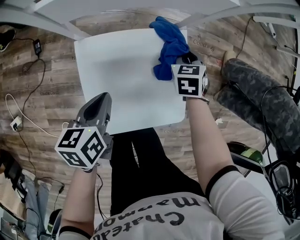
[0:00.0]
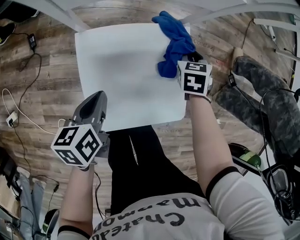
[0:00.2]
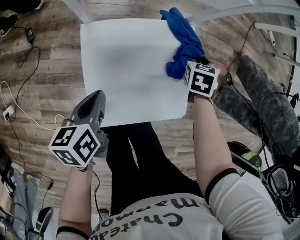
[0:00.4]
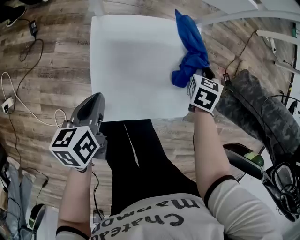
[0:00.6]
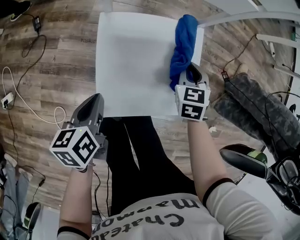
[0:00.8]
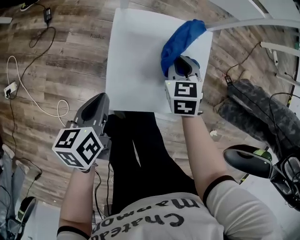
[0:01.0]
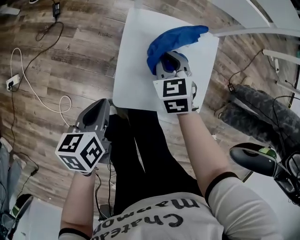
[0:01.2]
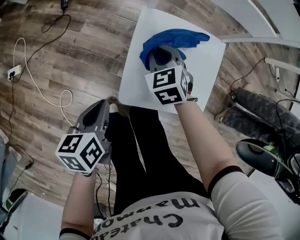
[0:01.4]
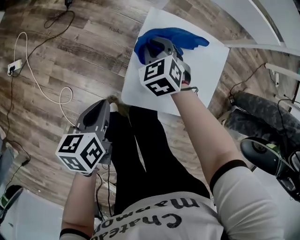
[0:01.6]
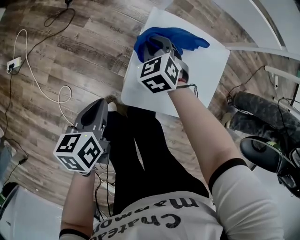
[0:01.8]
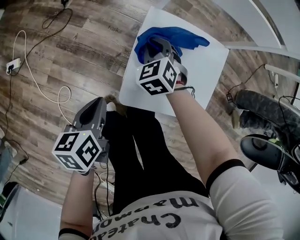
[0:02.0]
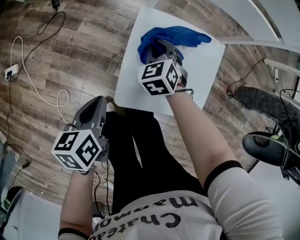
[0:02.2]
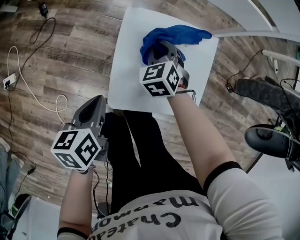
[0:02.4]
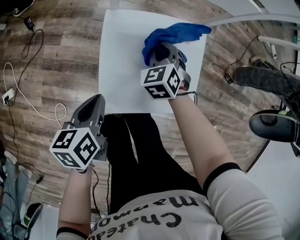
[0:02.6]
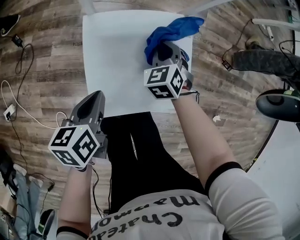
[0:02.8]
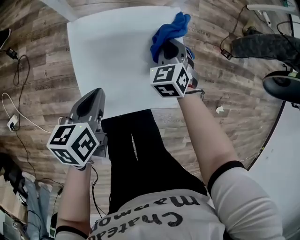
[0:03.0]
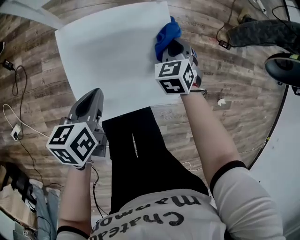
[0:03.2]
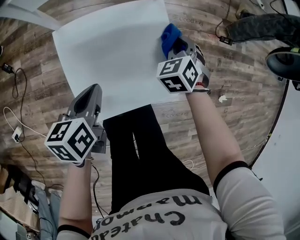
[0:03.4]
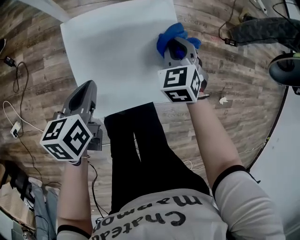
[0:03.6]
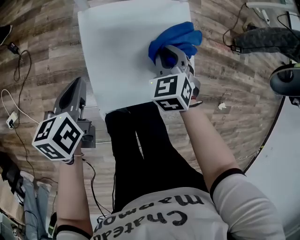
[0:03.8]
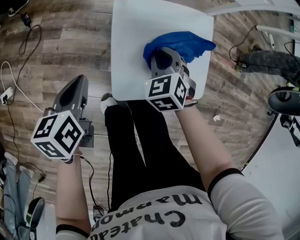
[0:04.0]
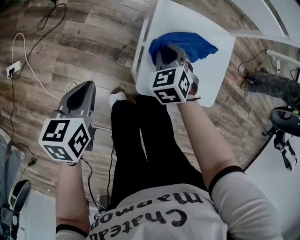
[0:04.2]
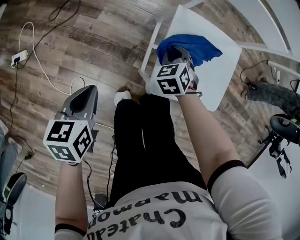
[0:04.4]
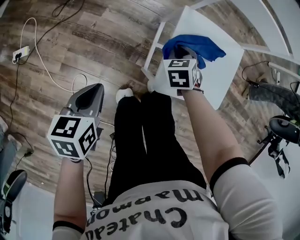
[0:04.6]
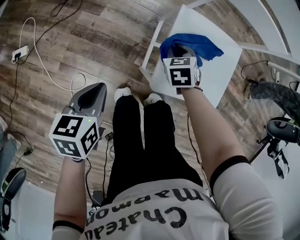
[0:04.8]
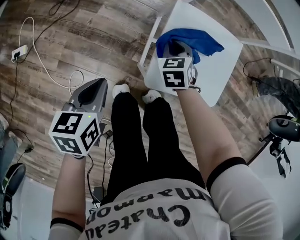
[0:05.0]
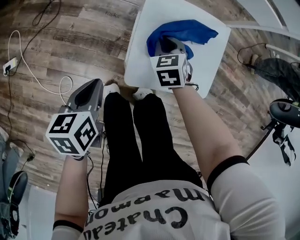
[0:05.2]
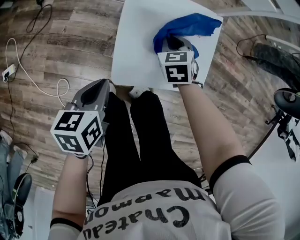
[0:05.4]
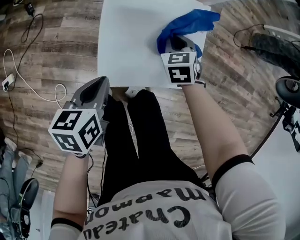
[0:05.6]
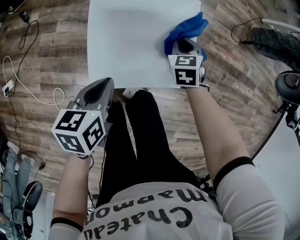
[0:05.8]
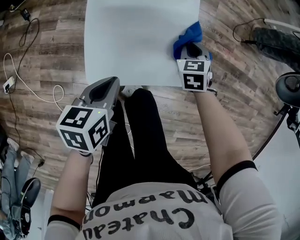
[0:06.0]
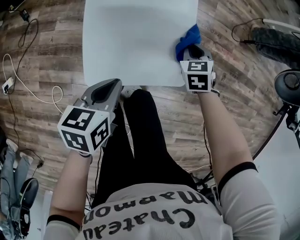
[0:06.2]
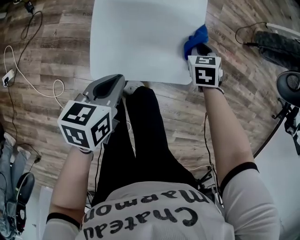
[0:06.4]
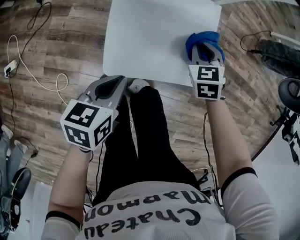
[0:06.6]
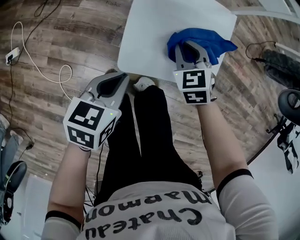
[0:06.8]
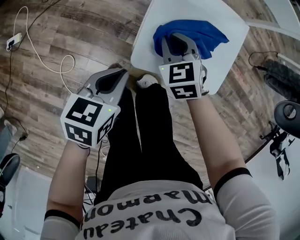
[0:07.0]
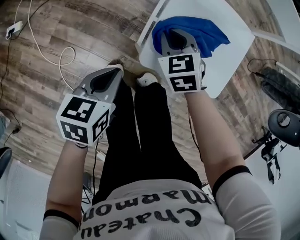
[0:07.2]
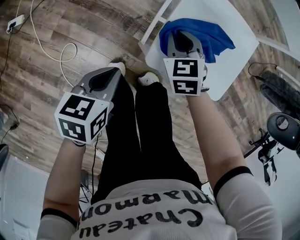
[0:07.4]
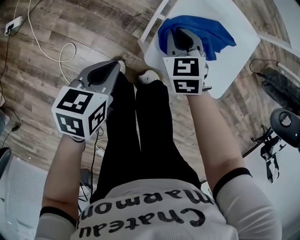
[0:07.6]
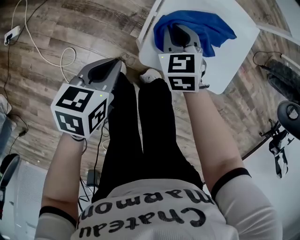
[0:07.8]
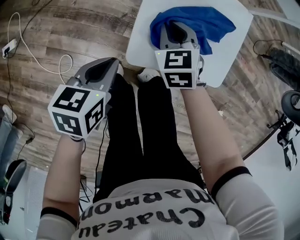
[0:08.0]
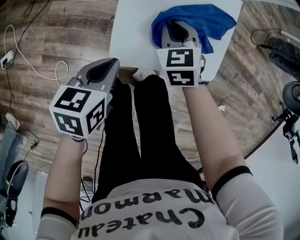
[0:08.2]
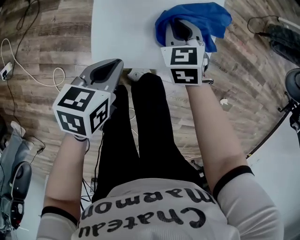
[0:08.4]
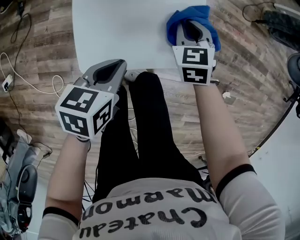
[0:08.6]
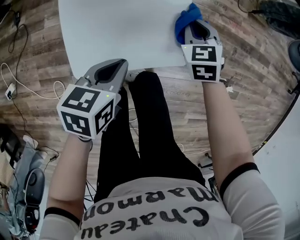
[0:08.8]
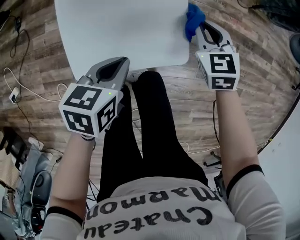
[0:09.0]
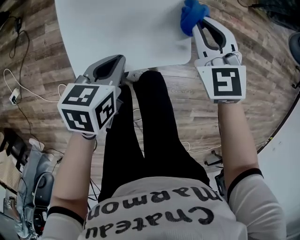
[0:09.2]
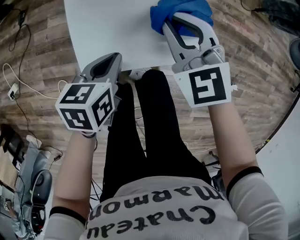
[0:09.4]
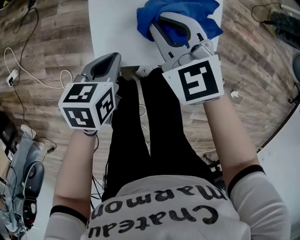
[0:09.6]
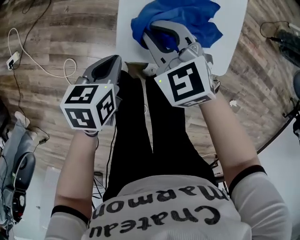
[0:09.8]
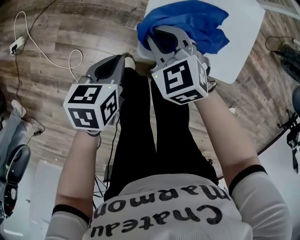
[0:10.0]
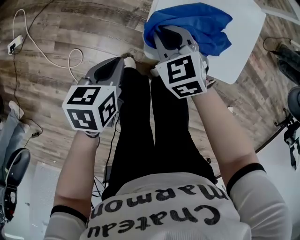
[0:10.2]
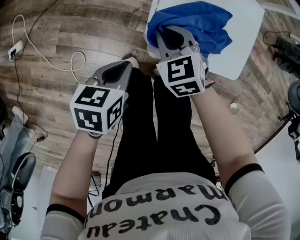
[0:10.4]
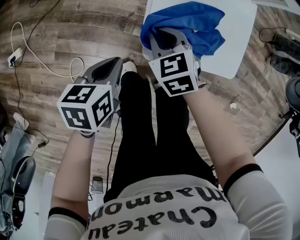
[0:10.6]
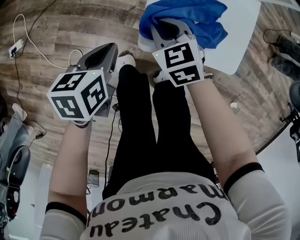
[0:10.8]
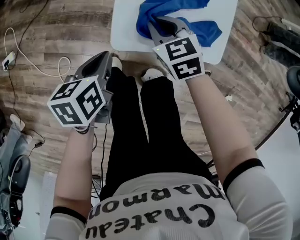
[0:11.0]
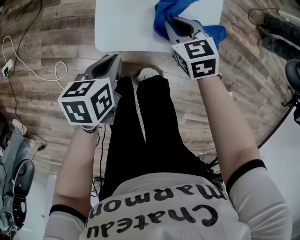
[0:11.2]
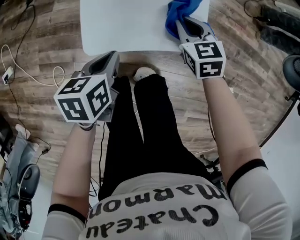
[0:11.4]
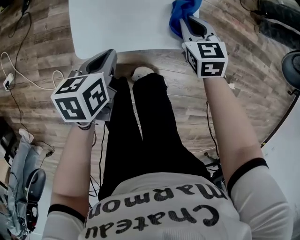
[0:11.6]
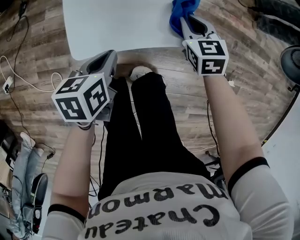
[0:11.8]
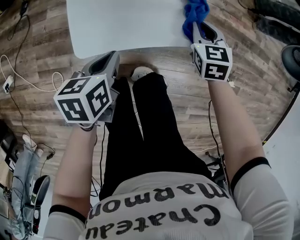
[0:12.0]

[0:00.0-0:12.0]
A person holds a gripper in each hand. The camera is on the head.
0:00.0 to 0:01.6: The right gripper ends up approximately 35 cm from where it was, and swivels some 50 degrees; the left gripper changes place by roughly 20 cm, and turns by some 20 degrees.
0:01.6 to 0:03.0: The left gripper changes place by roughly 20 cm, and changes its angle by some 20 degrees. The right gripper ends up about 30 cm from where it was, and swivels roughly 30 degrees.
0:03.0 to 0:04.4: The left gripper ends up approximately 30 cm from where it was. Meanwhile the right gripper shifts by about 30 cm.
0:04.4 to 0:06.0: The two grippers go roughly 30 cm to the right. The right gripper swivels roughly 20 degrees.
0:06.0 to 0:07.6: The right gripper shifts by about 35 cm, and turns by about 30 degrees, while the left gripper moves roughly 20 cm.
0:07.6 to 0:09.0: The left gripper moves approximately 30 cm, and turns by some 30 degrees. Meanwhile the right gripper ends up some 40 cm from where it was, and swivels about 20 degrees.
0:09.0 to 0:10.4: The right gripper goes upward and returns, roughly 5 cm each way, and turns by about 30 degrees, while the left gripper ends up roughly 25 cm from where it was.
0:10.4 to 0:12.0: The left gripper changes place by roughly 20 cm; the right gripper ends up about 35 cm from where it was, and changes its angle by about 30 degrees.

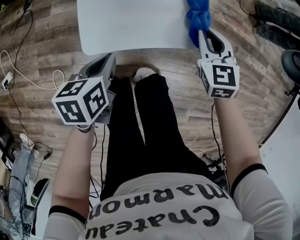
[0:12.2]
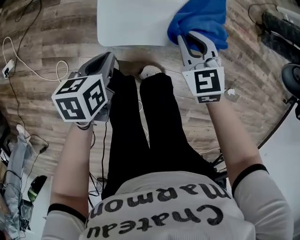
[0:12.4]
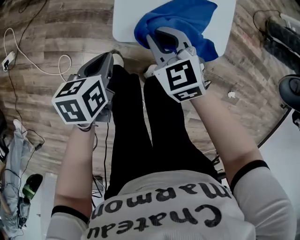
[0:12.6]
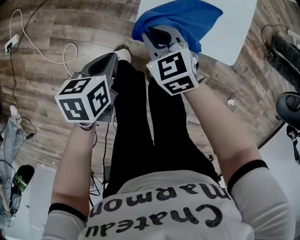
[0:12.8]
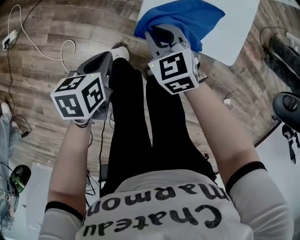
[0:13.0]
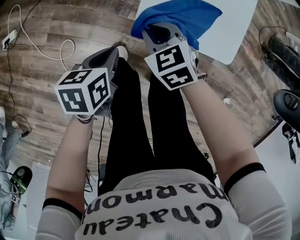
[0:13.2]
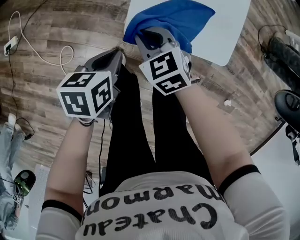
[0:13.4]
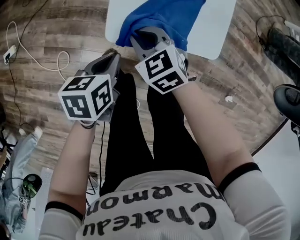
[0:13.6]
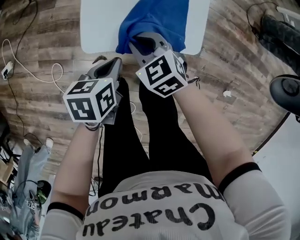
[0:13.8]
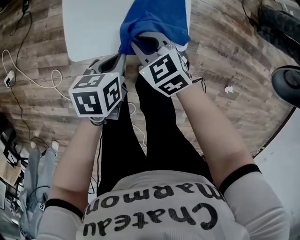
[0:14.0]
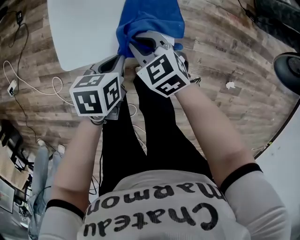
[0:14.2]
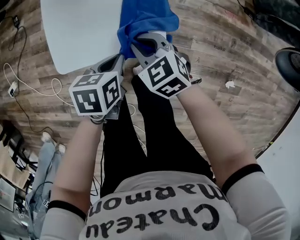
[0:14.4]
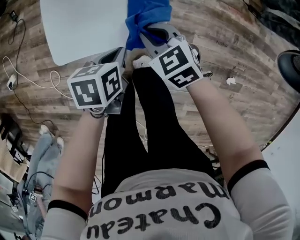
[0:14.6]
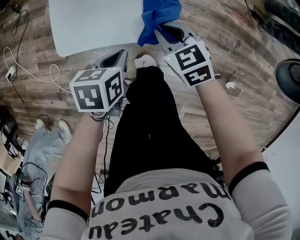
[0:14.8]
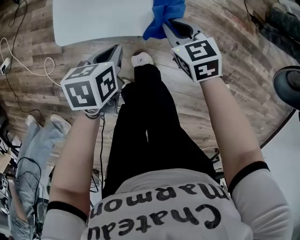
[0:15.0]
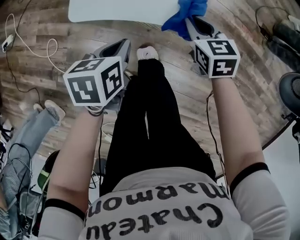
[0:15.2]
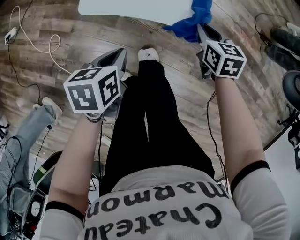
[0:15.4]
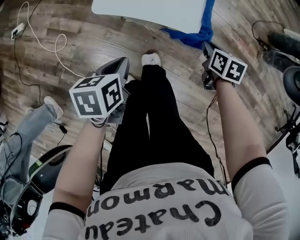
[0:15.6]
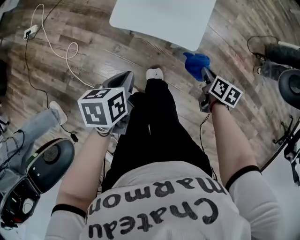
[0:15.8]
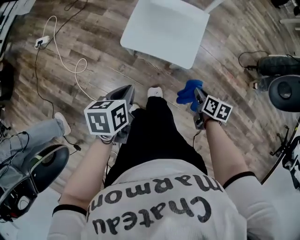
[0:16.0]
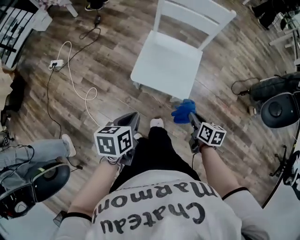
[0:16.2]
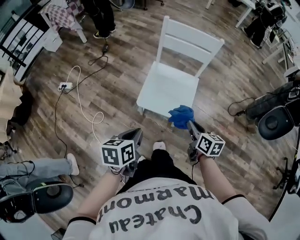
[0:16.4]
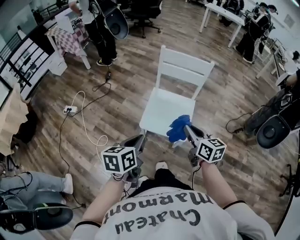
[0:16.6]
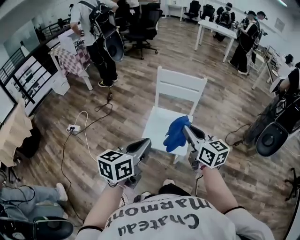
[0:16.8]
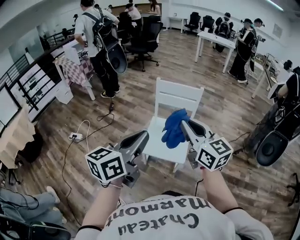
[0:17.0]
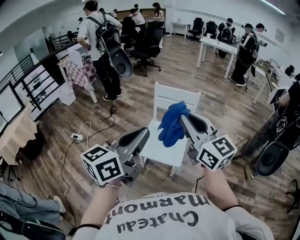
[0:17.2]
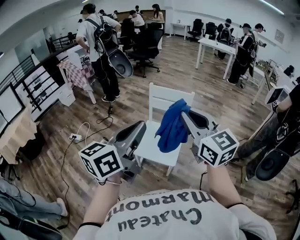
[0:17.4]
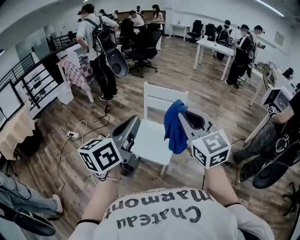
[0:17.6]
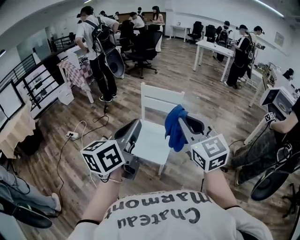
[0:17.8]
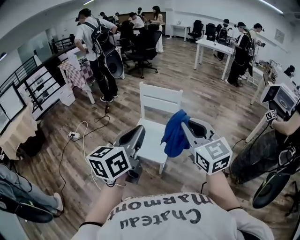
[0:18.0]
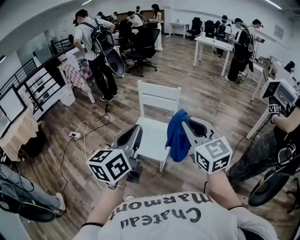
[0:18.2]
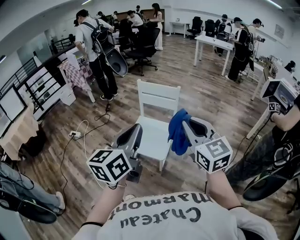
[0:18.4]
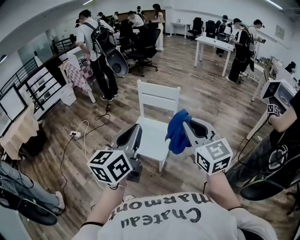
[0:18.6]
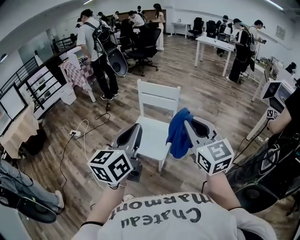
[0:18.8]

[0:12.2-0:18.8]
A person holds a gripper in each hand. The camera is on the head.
0:12.2 to 0:13.8: The right gripper changes its angle by approximately 30 degrees.
0:13.8 to 0:15.4: The right gripper goes approximately 25 cm to the right, and swivels about 30 degrees. Meanwhile the left gripper shifts approximately 10 cm backward and to the right.
0:15.4 to 0:17.2: The grippers both shift upward by approximately 70 cm. The left gripper angles its fingers upward, by approximately 60 degrees; the right gripper tips its fingers upward by approximately 60 degrees.
0:17.2 to 0:18.8: Both grippers move to the right, about 15 cm. The left gripper turns by some 20 degrees.

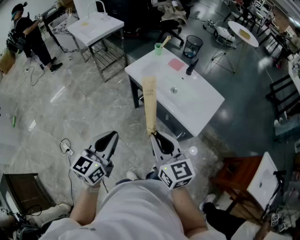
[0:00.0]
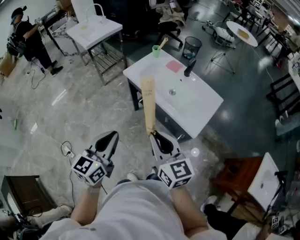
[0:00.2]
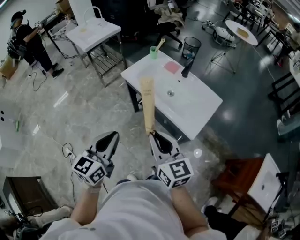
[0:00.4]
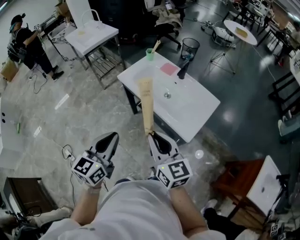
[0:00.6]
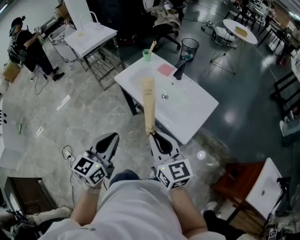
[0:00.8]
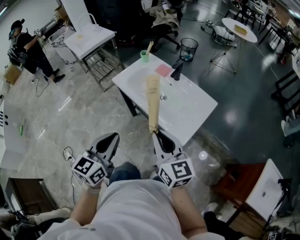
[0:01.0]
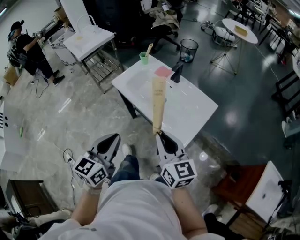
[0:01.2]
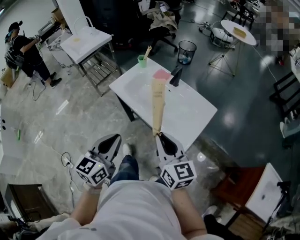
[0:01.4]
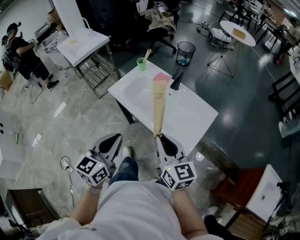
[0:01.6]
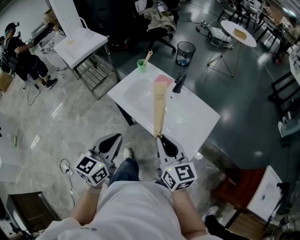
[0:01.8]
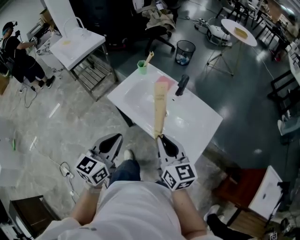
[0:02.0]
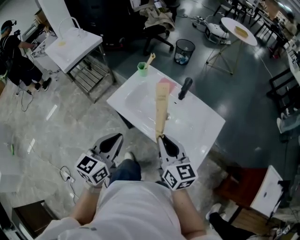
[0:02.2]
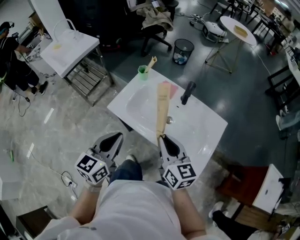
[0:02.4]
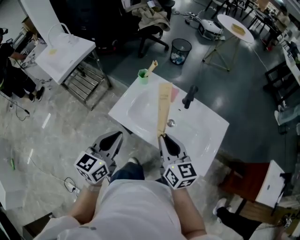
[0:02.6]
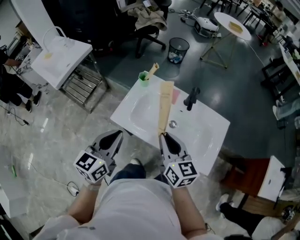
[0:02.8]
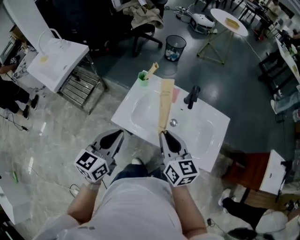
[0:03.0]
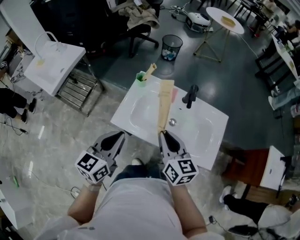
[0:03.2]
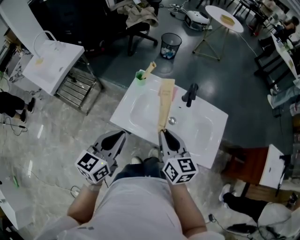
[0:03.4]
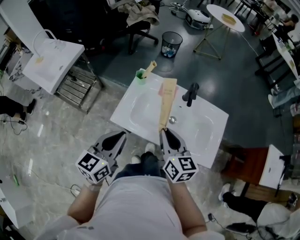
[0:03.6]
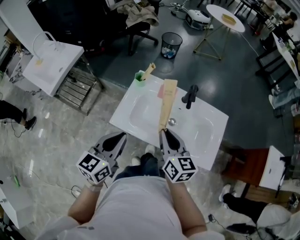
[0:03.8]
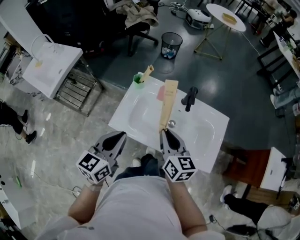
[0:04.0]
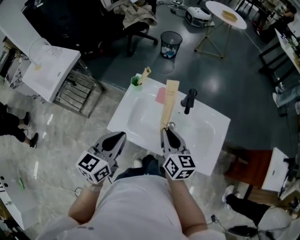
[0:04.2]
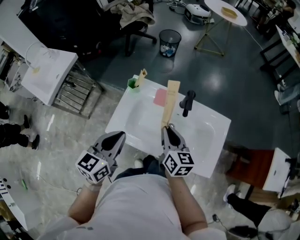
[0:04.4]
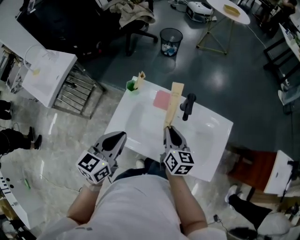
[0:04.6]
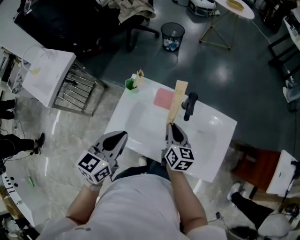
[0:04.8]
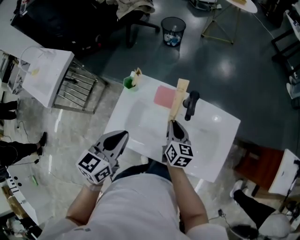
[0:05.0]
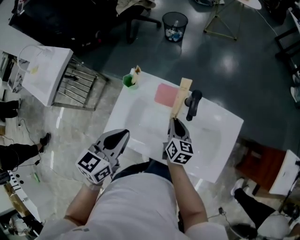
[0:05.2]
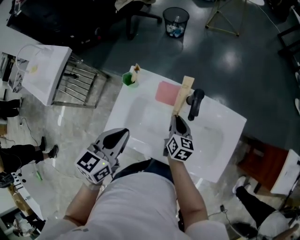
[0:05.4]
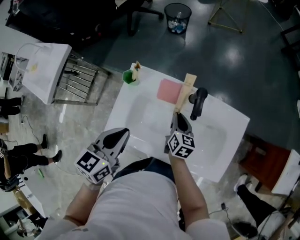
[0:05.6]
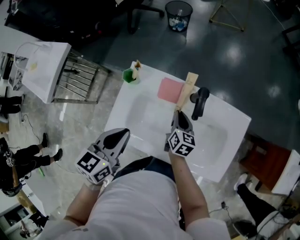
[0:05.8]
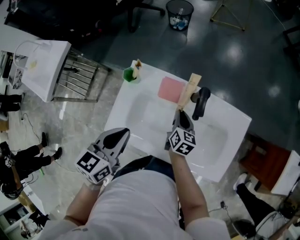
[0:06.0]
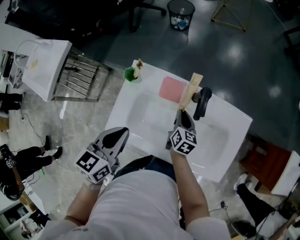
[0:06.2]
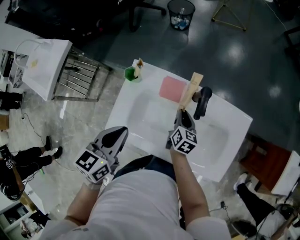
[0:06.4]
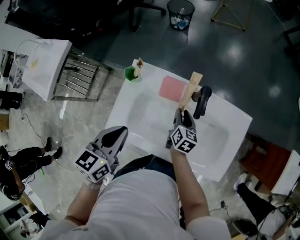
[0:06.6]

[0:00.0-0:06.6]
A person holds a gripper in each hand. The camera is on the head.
0:00.0 to 0:01.6: The grippers both shift to the right and forward by about 20 cm.
0:01.6 to 0:03.2: The two grippers go approximately 30 cm forward and to the left. The left gripper swivels some 20 degrees; the right gripper turns by roughly 20 degrees.
0:03.2 to 0:05.0: The right gripper heads forward, downward and to the right, covering some 25 cm, and swivels about 20 degrees. The left gripper moves forward and to the right, approximately 15 cm.
0:05.0 to 0:06.6: The left gripper changes place by approximately 5 cm, while the right gripper goes some 10 cm downward.
